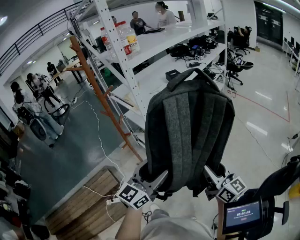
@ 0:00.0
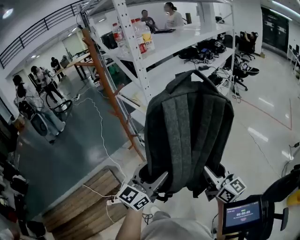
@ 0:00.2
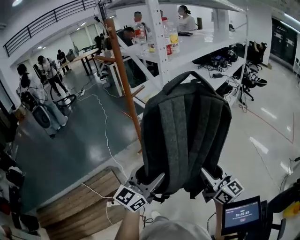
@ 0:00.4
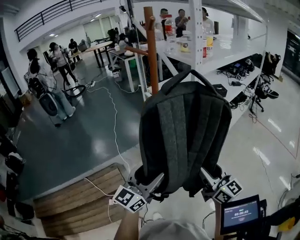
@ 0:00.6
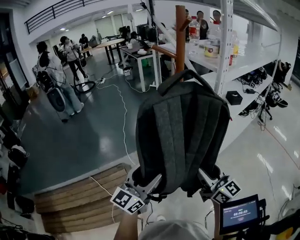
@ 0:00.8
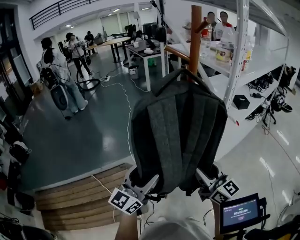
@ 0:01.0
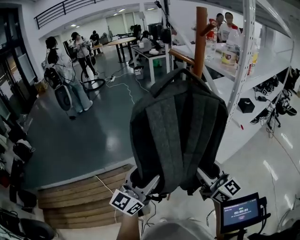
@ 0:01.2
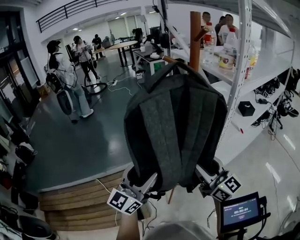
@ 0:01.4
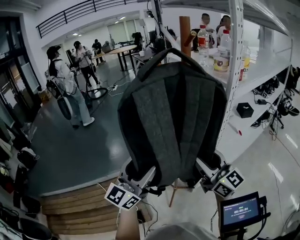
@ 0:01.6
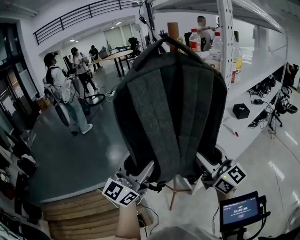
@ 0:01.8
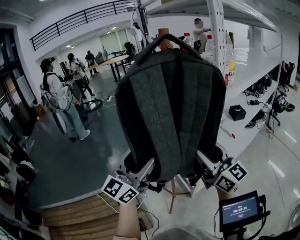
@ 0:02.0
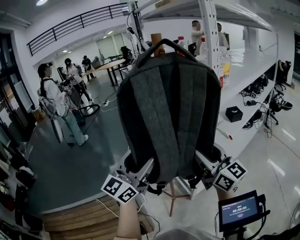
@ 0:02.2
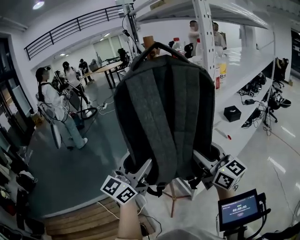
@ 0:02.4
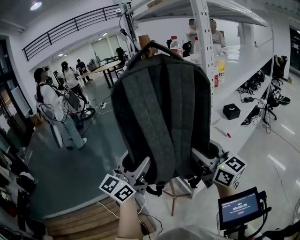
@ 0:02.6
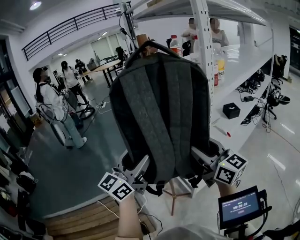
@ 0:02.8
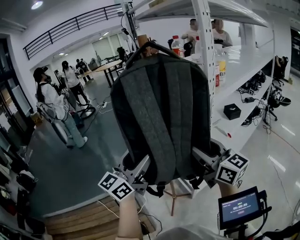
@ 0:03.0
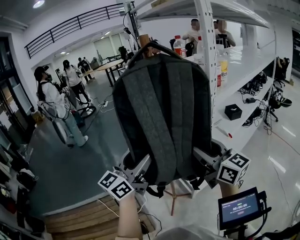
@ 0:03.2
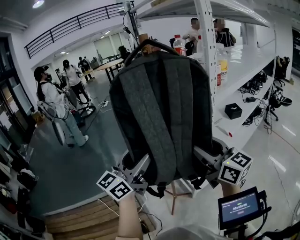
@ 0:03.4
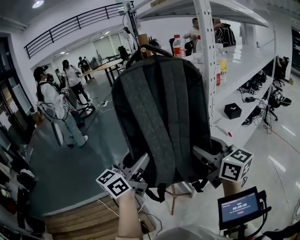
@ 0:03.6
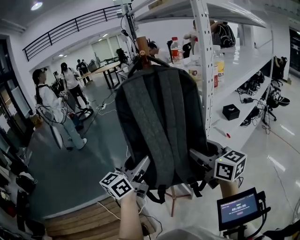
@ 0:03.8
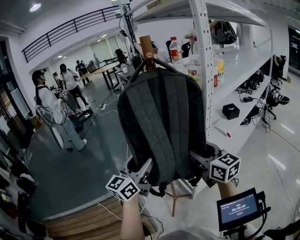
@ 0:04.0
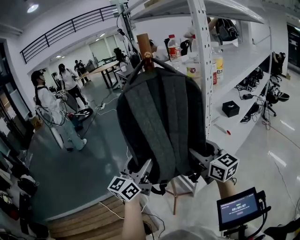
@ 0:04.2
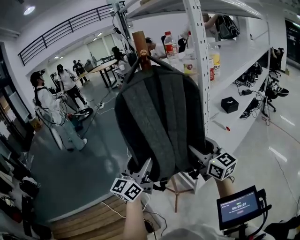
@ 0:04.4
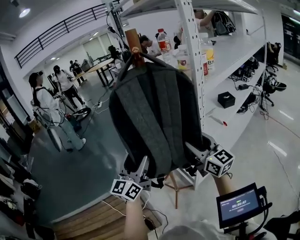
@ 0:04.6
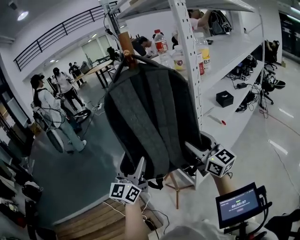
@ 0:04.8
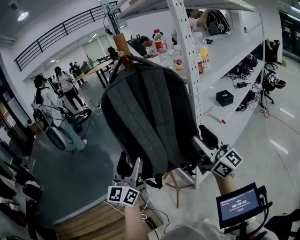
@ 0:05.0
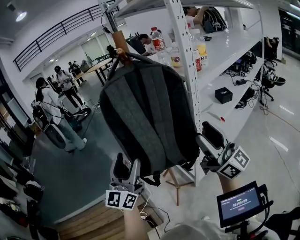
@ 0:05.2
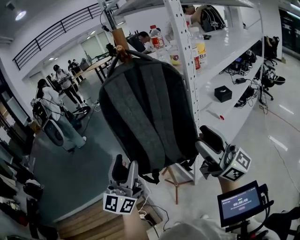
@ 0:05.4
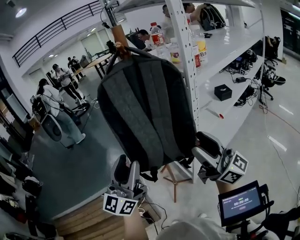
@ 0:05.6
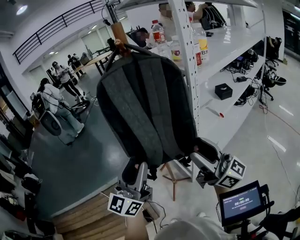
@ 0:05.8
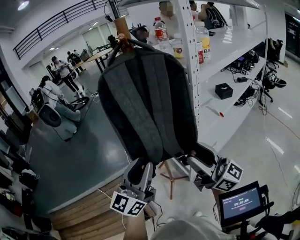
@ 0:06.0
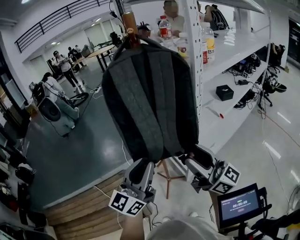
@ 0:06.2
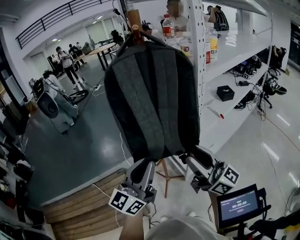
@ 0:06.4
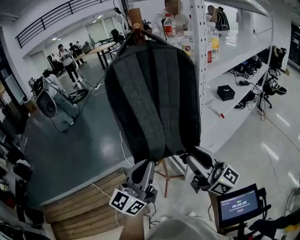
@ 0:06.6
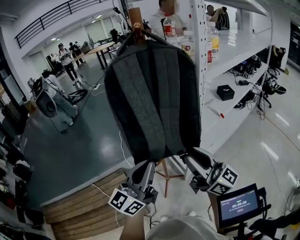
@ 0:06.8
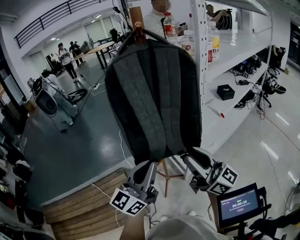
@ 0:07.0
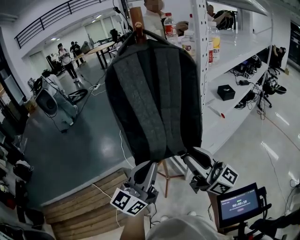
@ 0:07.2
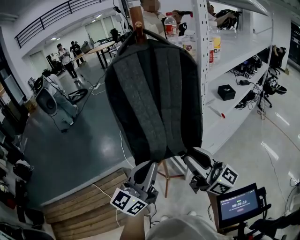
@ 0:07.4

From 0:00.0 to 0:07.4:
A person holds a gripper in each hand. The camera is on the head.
From 0:00.0 to 0:01.4: Both grippers are carried about 40 cm. The right gripper turns by approximately 30 degrees. Meanwhile the left gripper swivels some 30 degrees.
From 0:01.4 to 0:03.0: The left gripper heads upward and forward, covering approximately 10 cm. The right gripper shifts approximately 10 cm upward.
From 0:03.0 to 0:04.4: Both grippers move downward, roughly 5 cm.
From 0:04.4 to 0:06.0: The two grippers go about 15 cm backward. The left gripper closes. The right gripper swivels approximately 30 degrees.
From 0:06.0 to 0:07.4: The right gripper closes, while the left gripper closes its fingers.

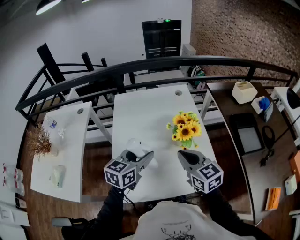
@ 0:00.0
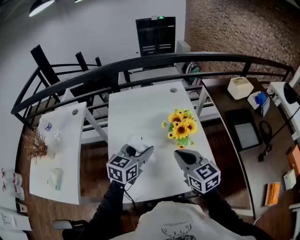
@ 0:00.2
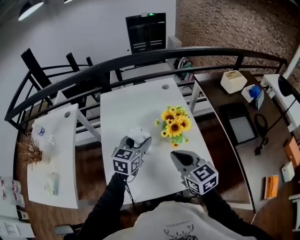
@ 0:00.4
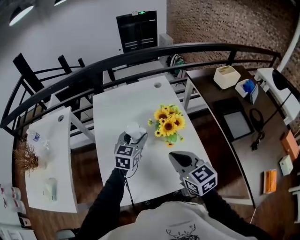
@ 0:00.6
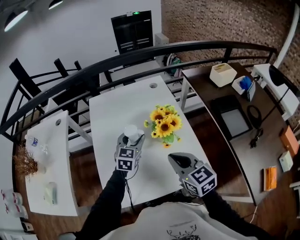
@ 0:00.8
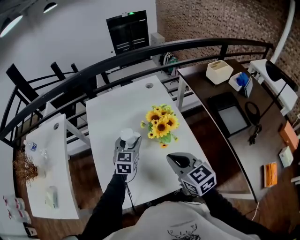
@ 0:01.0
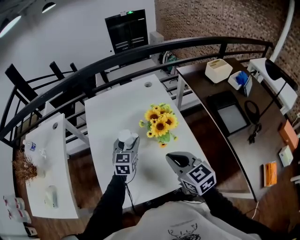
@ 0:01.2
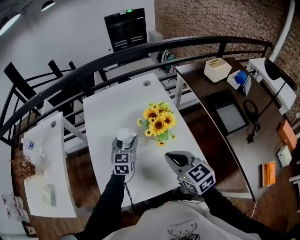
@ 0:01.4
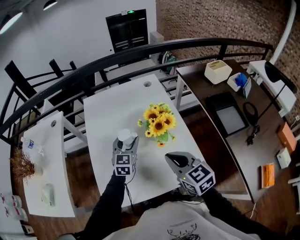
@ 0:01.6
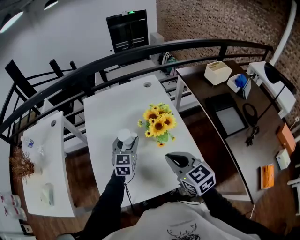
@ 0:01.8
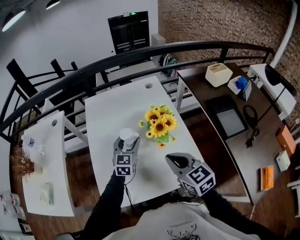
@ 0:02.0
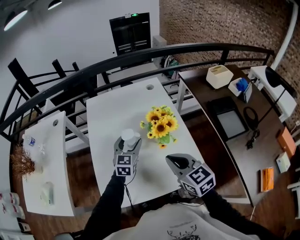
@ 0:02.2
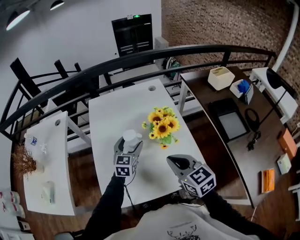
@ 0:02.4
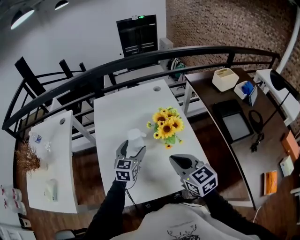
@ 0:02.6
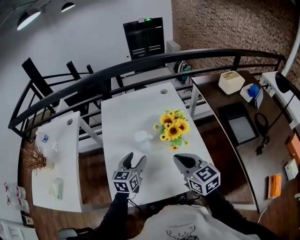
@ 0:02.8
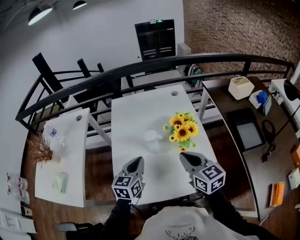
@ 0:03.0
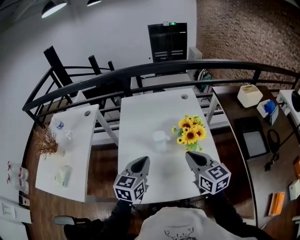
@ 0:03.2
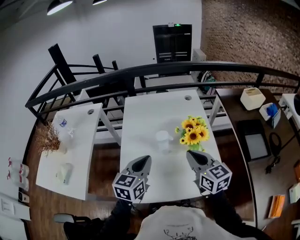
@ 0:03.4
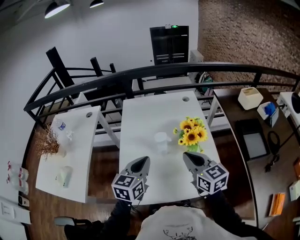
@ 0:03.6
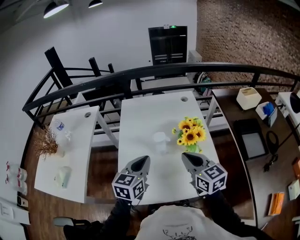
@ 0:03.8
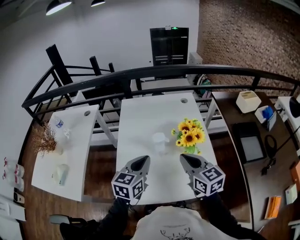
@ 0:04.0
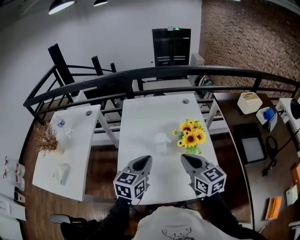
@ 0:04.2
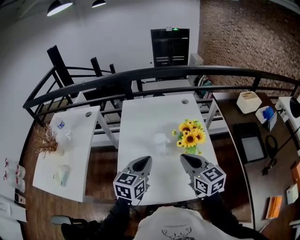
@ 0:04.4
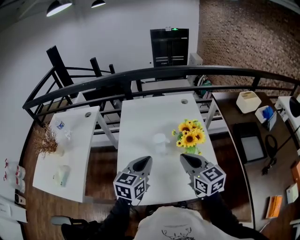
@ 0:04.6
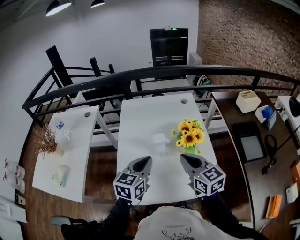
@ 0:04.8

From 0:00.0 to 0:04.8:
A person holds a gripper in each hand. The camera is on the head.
From 0:00.0 to 0:01.6: The right gripper ends up about 5 cm from where it was. The left gripper travels forward, downward and to the right by about 15 cm, and rotates some 20 degrees.
From 0:01.6 to 0:03.2: The left gripper travels backward, upward and to the left by some 20 cm, and closes up; the right gripper ends up about 5 cm from where it was.
From 0:03.2 to 0:04.8: The grippers stay close to where they were, moving slightly.

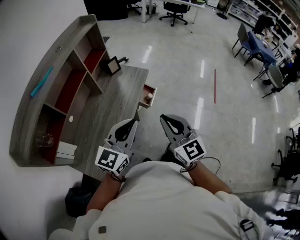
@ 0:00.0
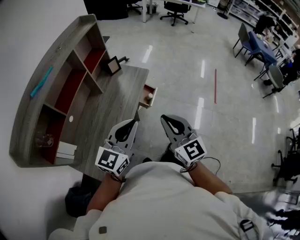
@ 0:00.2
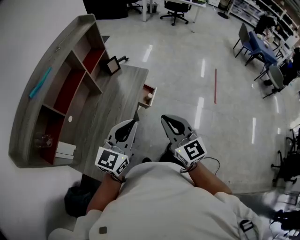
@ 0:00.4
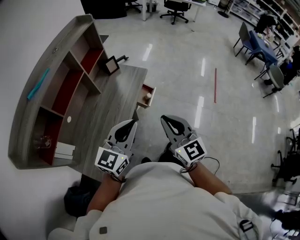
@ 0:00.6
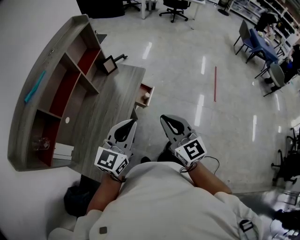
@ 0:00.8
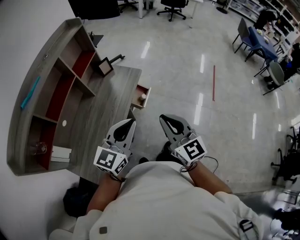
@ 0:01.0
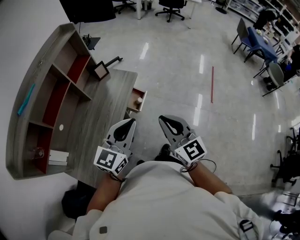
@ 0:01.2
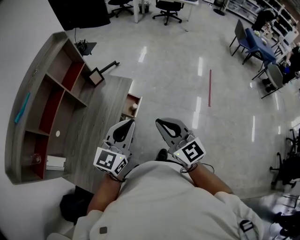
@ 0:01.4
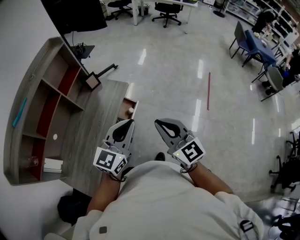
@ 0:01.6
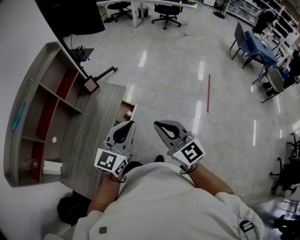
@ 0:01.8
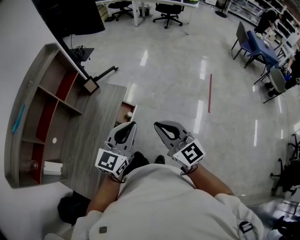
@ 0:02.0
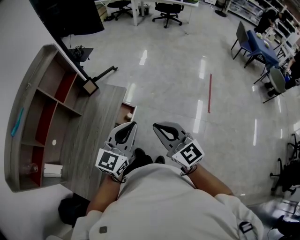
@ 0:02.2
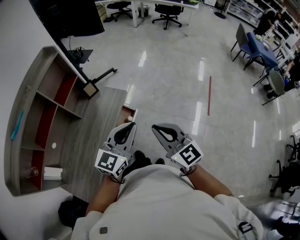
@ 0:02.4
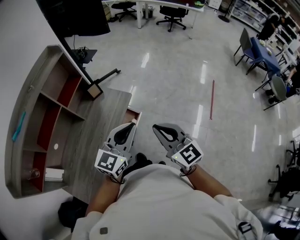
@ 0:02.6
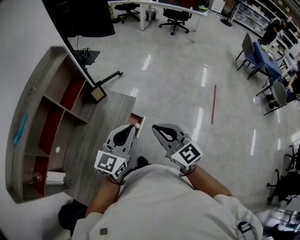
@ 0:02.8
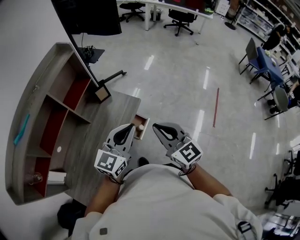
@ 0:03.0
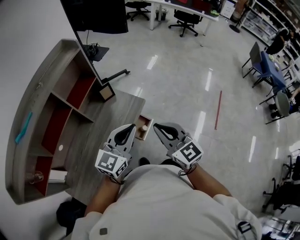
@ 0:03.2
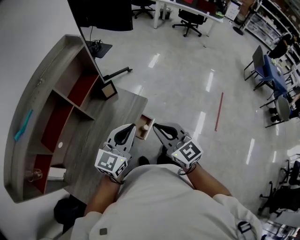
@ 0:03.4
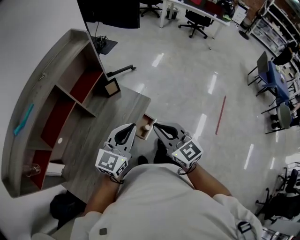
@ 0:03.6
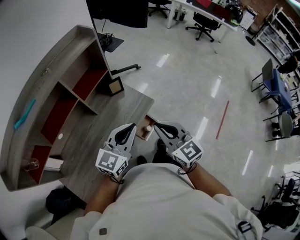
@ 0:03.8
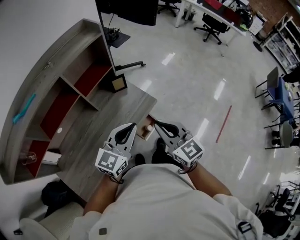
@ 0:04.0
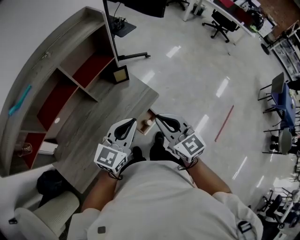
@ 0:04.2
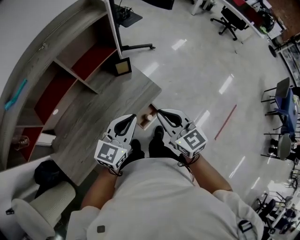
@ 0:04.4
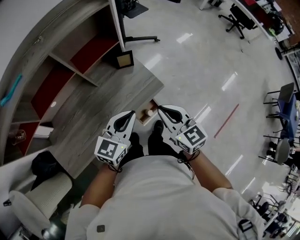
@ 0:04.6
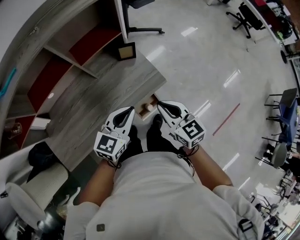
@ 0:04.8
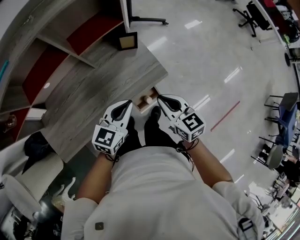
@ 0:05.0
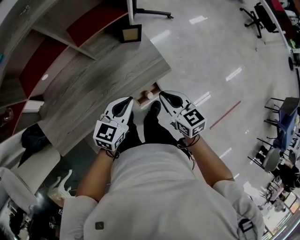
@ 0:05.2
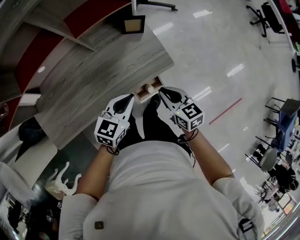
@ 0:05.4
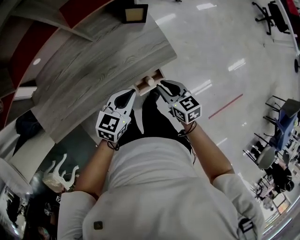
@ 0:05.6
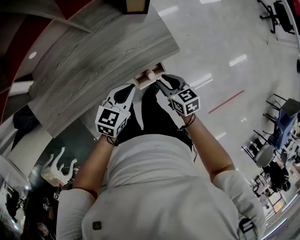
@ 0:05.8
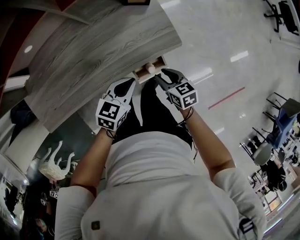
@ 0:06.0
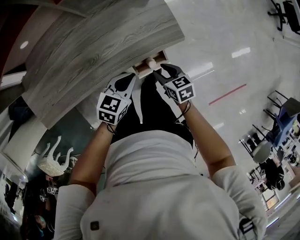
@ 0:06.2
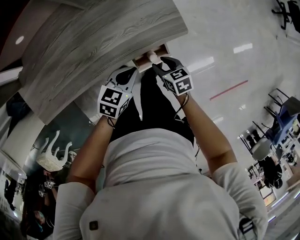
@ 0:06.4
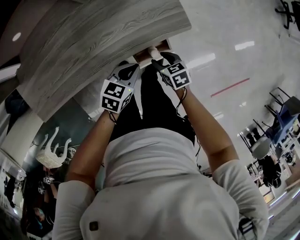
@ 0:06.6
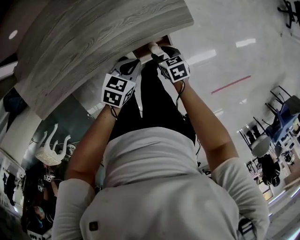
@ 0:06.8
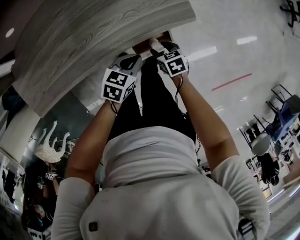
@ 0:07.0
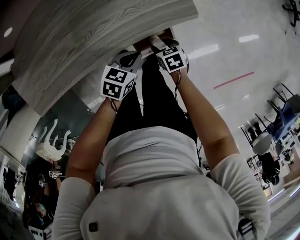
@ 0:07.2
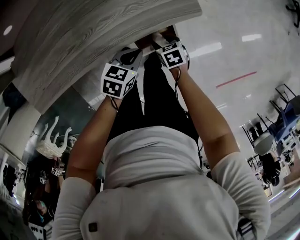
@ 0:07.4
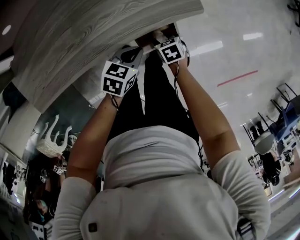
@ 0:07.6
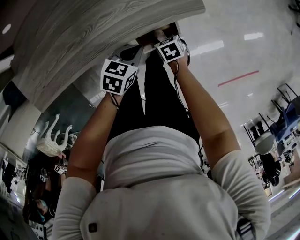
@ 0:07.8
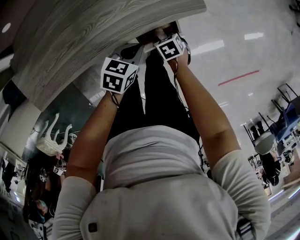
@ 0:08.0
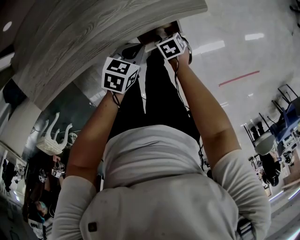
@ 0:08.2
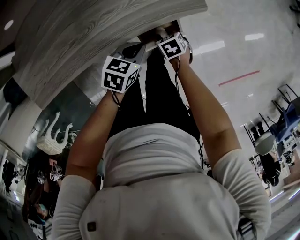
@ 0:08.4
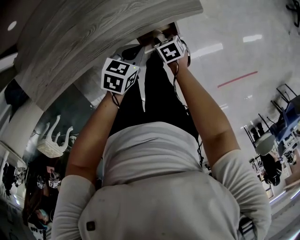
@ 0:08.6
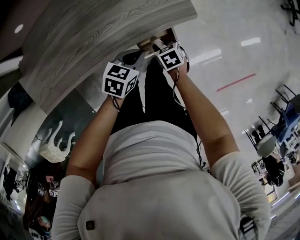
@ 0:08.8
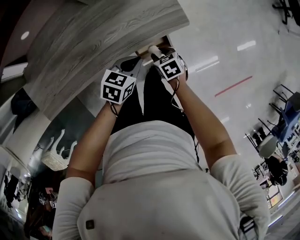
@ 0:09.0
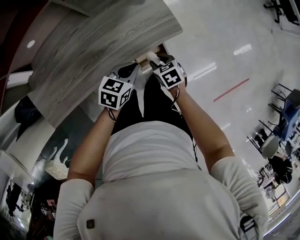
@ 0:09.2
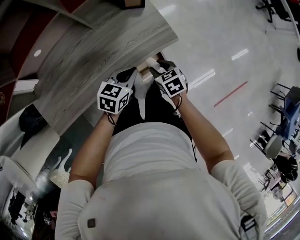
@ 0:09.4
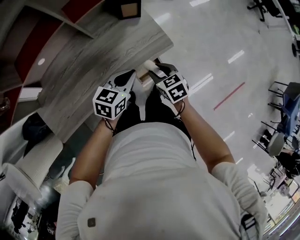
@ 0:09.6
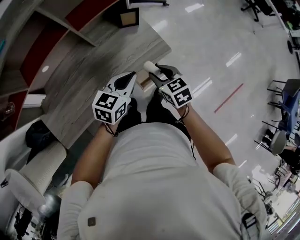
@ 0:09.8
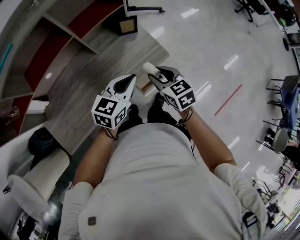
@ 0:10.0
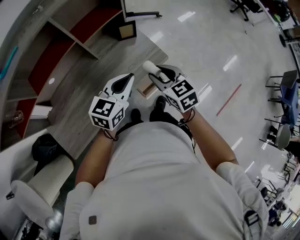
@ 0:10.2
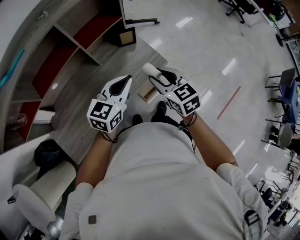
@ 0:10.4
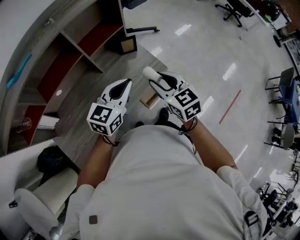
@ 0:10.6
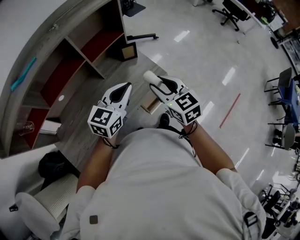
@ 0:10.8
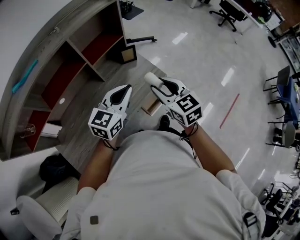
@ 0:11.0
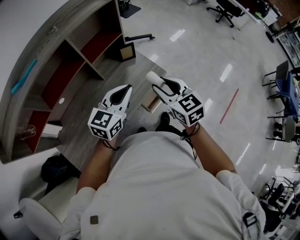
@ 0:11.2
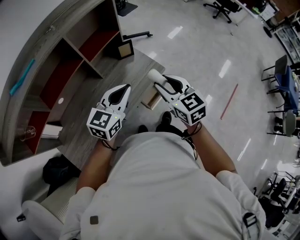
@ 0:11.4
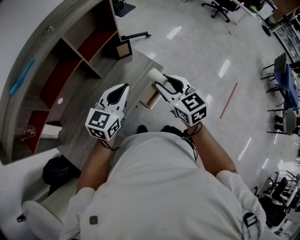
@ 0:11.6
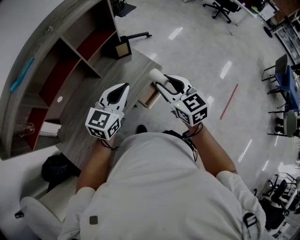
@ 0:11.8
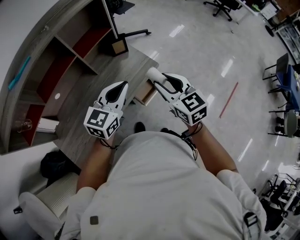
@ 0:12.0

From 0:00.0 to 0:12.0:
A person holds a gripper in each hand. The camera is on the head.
From 0:00.0 to 0:01.6: Both grippers move to the right and forward, approximately 20 cm.
From 0:01.6 to 0:03.0: The grippers both shift forward and to the left by approximately 15 cm.
From 0:03.0 to 0:04.4: The right gripper shifts about 15 cm forward and downward, and rotates approximately 20 degrees. The left gripper goes approximately 15 cm forward, downward and to the left, and rotates about 20 degrees.
From 0:04.4 to 0:06.0: Both grippers travel together downward, about 30 cm. The left gripper rotates approximately 30 degrees. Meanwhile the right gripper swivels roughly 40 degrees, and opens its fingers.
From 0:06.0 to 0:07.6: The two grippers go approximately 20 cm downward. The right gripper turns by roughly 20 degrees.
From 0:07.6 to 0:09.0: Both grippers travel together upward, some 10 cm.
From 0:09.0 to 0:10.4: The grippers both shift upward by approximately 35 cm. The left gripper swivels roughly 30 degrees, while the right gripper tilts its fingers approximately 30 degrees upward.
From 0:10.4 to 0:12.0: The right gripper travels backward, upward and to the right by roughly 15 cm. Meanwhile the left gripper shifts some 10 cm backward and upward.
